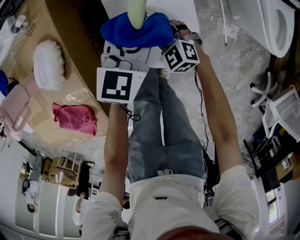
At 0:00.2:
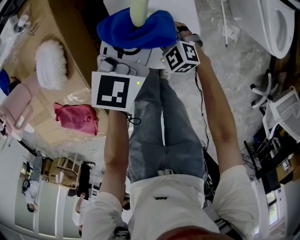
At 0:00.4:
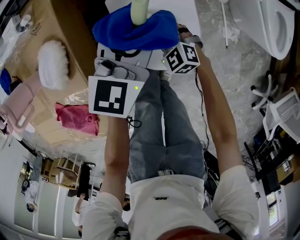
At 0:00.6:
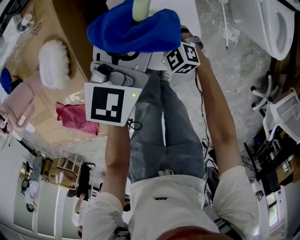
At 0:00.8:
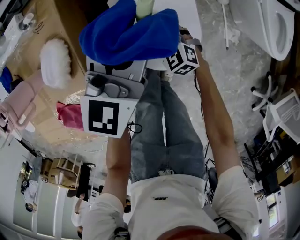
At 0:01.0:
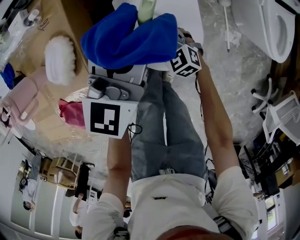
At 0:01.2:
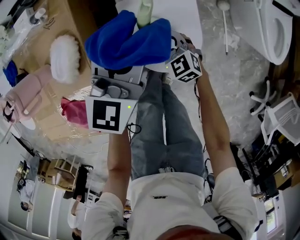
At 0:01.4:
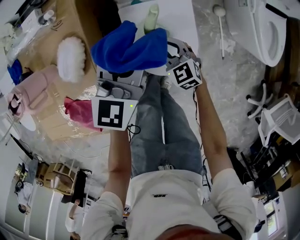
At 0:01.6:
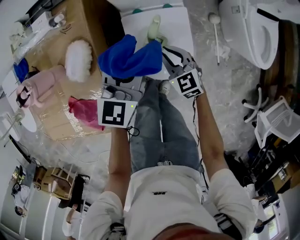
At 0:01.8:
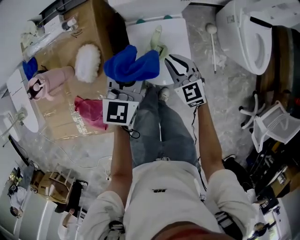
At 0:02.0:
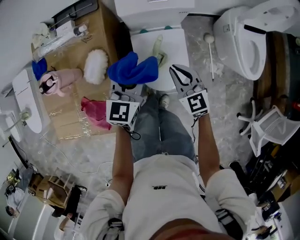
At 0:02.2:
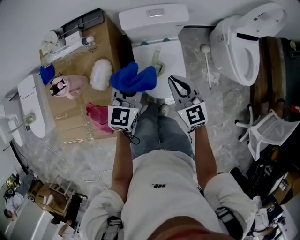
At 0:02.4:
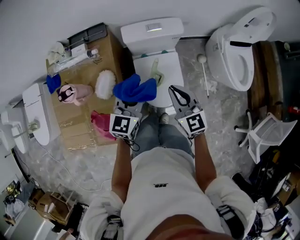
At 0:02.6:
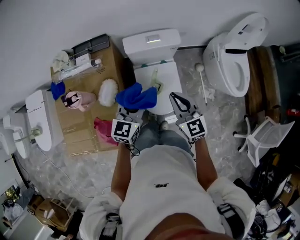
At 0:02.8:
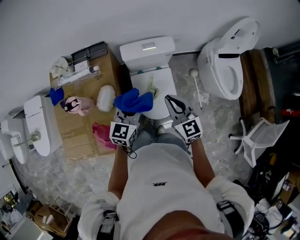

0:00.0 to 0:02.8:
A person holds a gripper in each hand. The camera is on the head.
0:00.0 to 0:01.4: The left gripper heads upward and to the left, covering some 15 cm; the right gripper moves upward, roughly 10 cm.
0:01.4 to 0:02.8: The right gripper travels upward by about 40 cm, and swivels about 20 degrees. Meanwhile the left gripper travels upward by roughly 20 cm.

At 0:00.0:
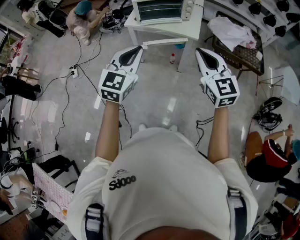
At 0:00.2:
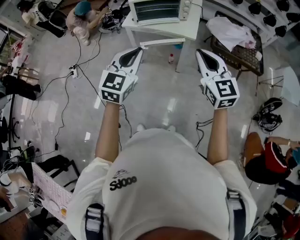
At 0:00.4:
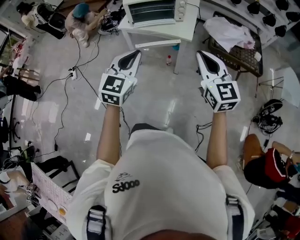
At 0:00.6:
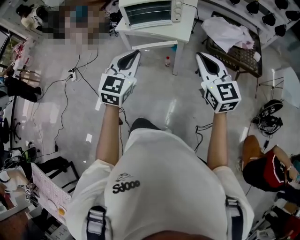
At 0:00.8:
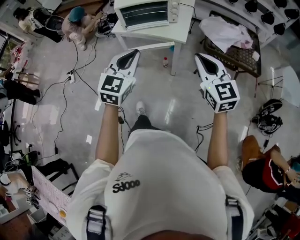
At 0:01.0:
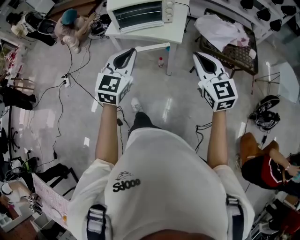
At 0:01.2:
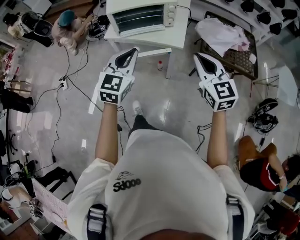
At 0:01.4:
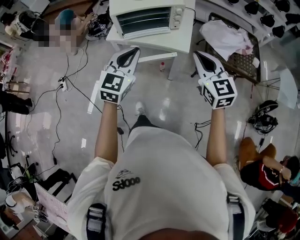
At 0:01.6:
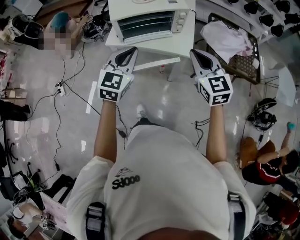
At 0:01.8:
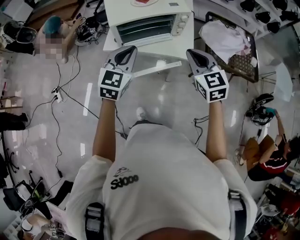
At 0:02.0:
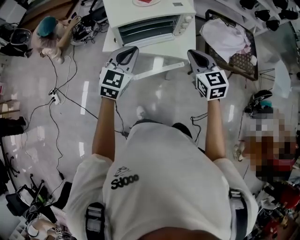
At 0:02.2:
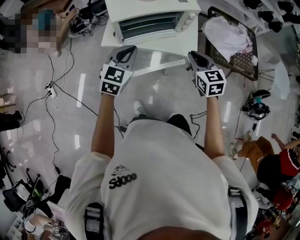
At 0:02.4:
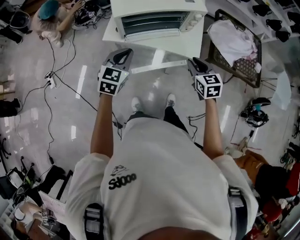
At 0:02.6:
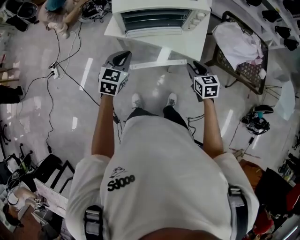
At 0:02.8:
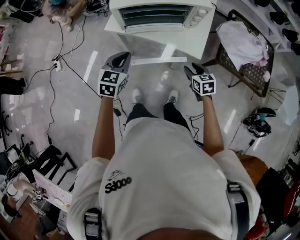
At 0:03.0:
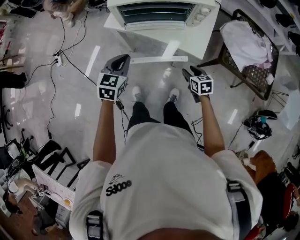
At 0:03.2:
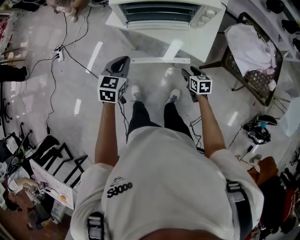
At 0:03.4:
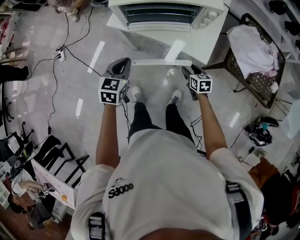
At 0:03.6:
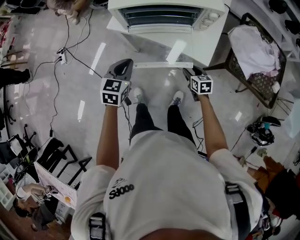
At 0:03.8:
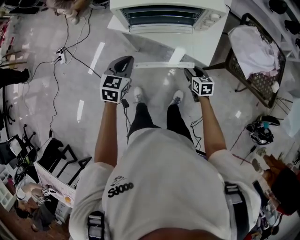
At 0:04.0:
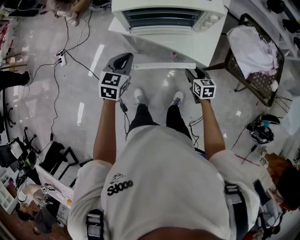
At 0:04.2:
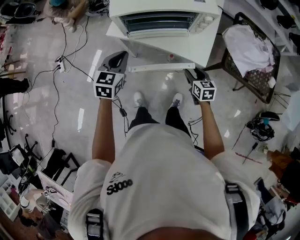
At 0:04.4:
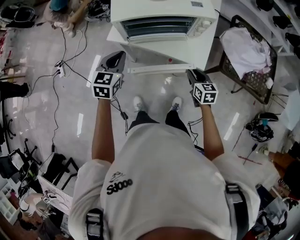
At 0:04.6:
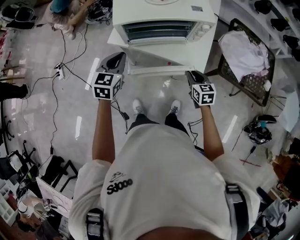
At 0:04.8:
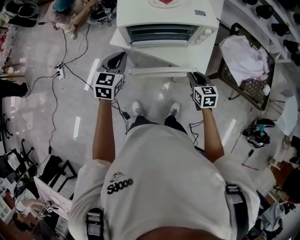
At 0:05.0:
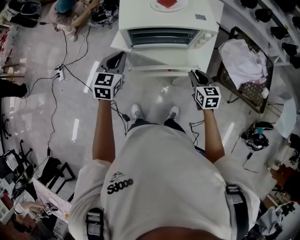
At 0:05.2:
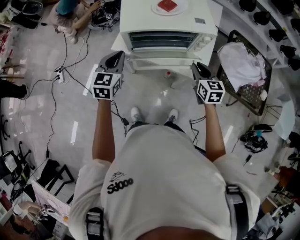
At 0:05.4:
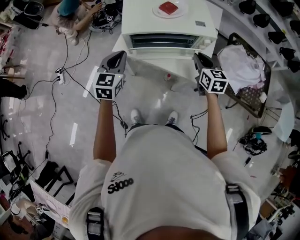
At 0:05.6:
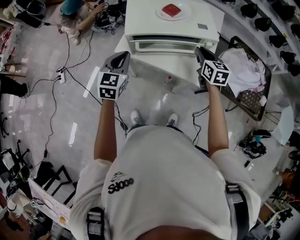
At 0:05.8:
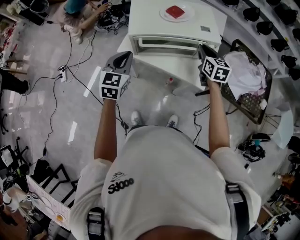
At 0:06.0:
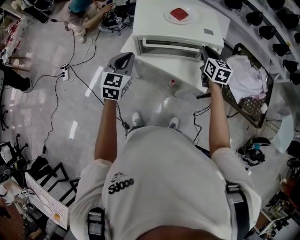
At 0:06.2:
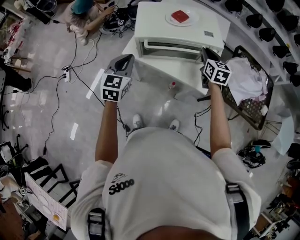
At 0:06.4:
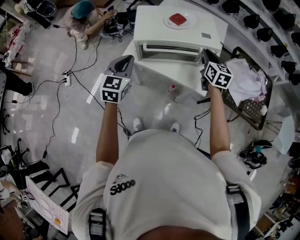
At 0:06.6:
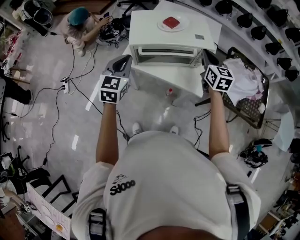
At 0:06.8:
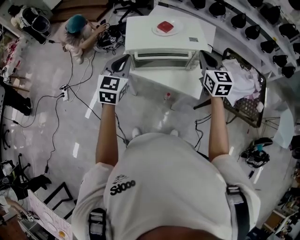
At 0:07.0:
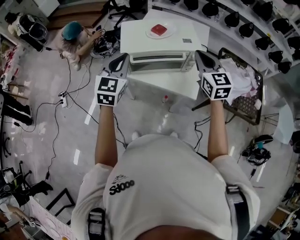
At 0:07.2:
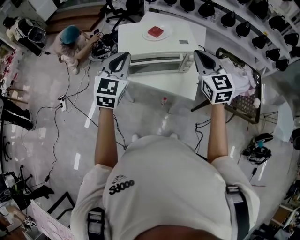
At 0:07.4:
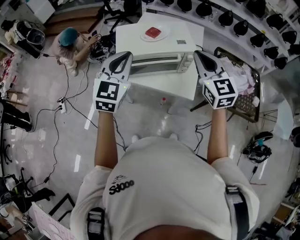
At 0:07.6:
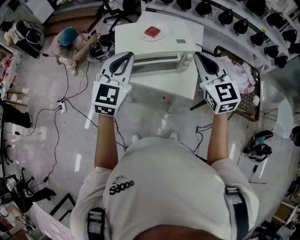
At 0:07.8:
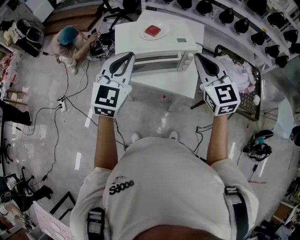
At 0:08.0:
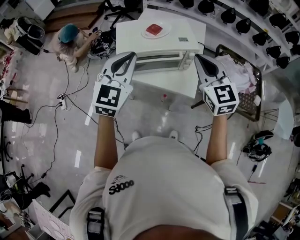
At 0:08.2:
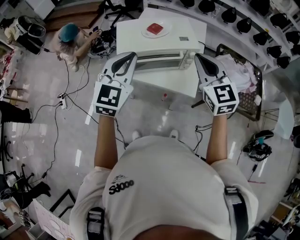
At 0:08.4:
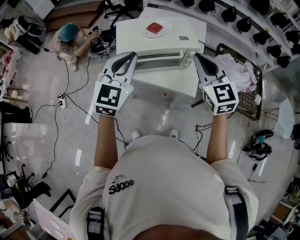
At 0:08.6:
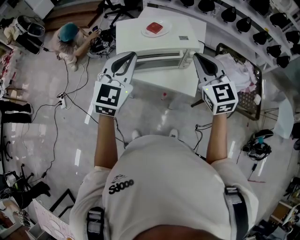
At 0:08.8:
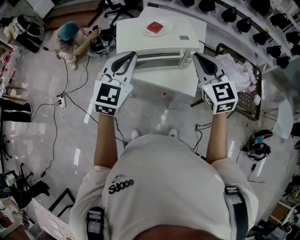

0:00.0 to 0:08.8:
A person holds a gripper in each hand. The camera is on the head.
0:00.0 to 0:01.4: Both grippers travel together forward, roughly 20 cm.
0:01.4 to 0:03.0: The right gripper travels downward and forward by roughly 40 cm, tilts its fingers about 40 degrees downward, and opens its fingers; the left gripper shifts some 25 cm downward, forward and to the left, and changes its angle by some 30 degrees.
0:03.0 to 0:04.4: The left gripper shifts about 10 cm forward, while the right gripper travels upward by approximately 5 cm.
0:04.4 to 0:05.8: The left gripper travels upward by about 5 cm; the right gripper goes roughly 25 cm forward and upward.
0:05.8 to 0:07.4: The right gripper goes about 25 cm upward and backward, and changes its angle by about 30 degrees. Meanwhile the left gripper goes approximately 20 cm upward and to the right, and changes its angle by approximately 20 degrees.
0:07.4 to 0:08.8: The grippers stay close to where they were, moving slightly.

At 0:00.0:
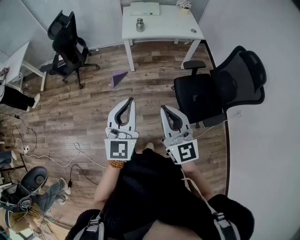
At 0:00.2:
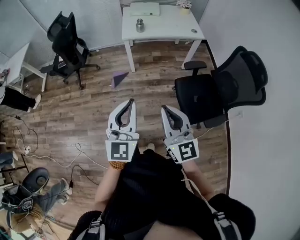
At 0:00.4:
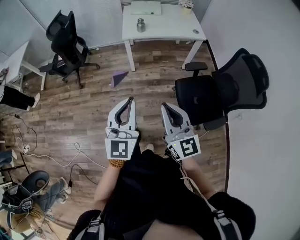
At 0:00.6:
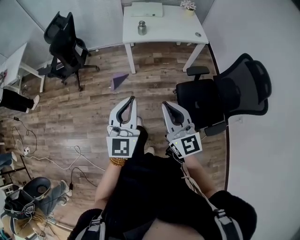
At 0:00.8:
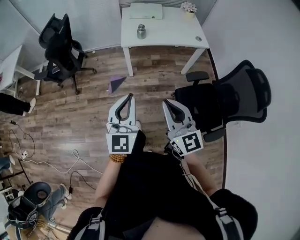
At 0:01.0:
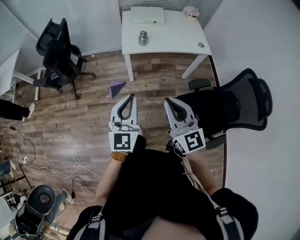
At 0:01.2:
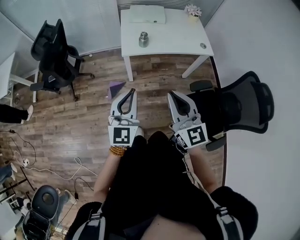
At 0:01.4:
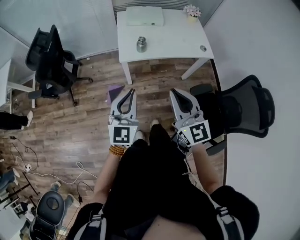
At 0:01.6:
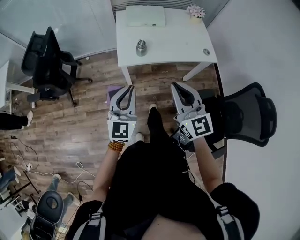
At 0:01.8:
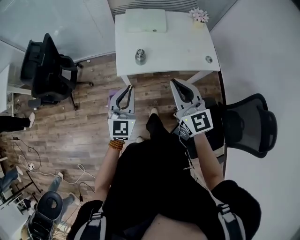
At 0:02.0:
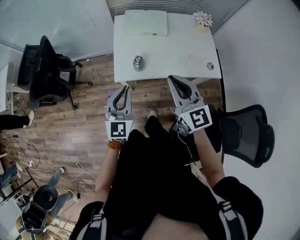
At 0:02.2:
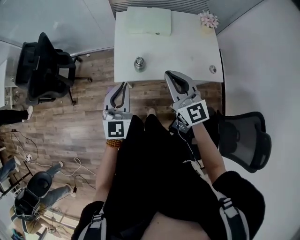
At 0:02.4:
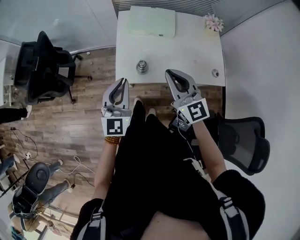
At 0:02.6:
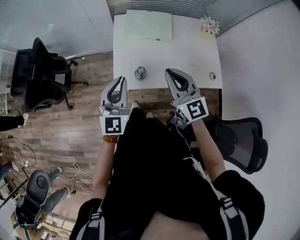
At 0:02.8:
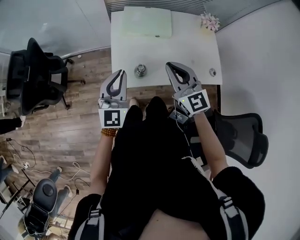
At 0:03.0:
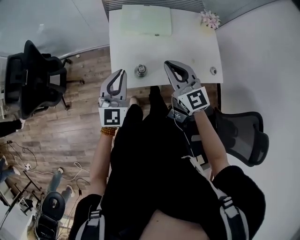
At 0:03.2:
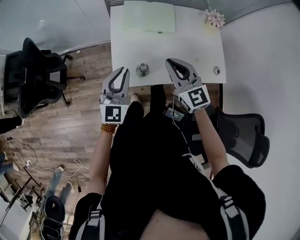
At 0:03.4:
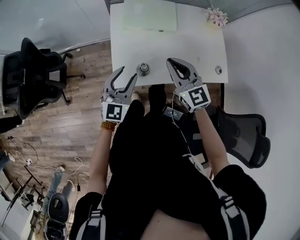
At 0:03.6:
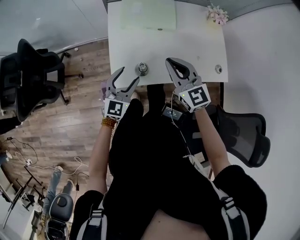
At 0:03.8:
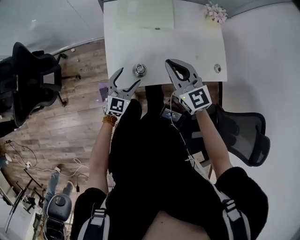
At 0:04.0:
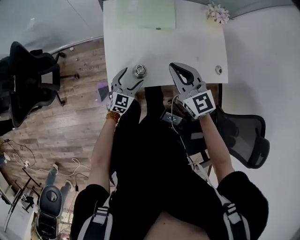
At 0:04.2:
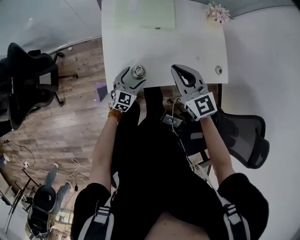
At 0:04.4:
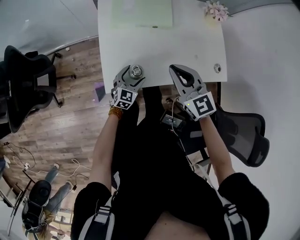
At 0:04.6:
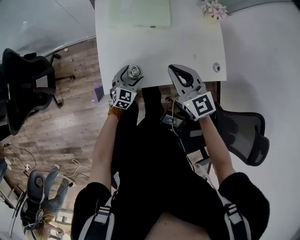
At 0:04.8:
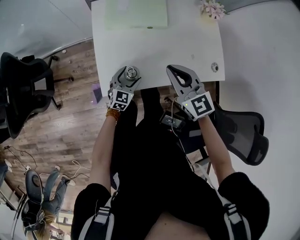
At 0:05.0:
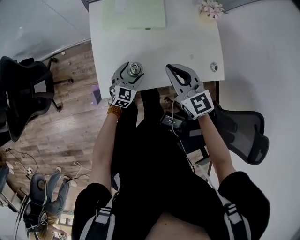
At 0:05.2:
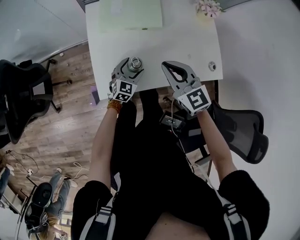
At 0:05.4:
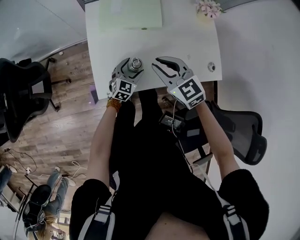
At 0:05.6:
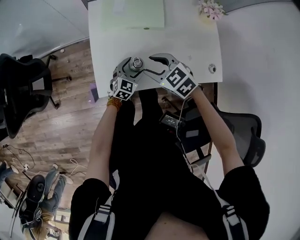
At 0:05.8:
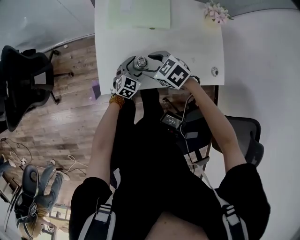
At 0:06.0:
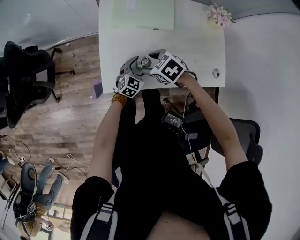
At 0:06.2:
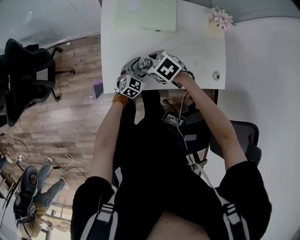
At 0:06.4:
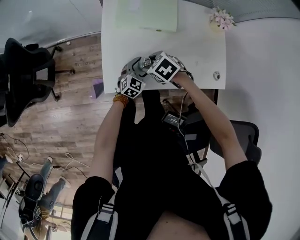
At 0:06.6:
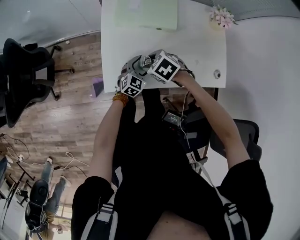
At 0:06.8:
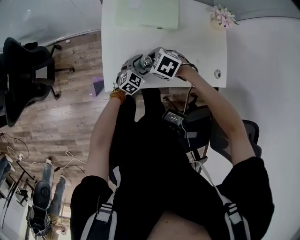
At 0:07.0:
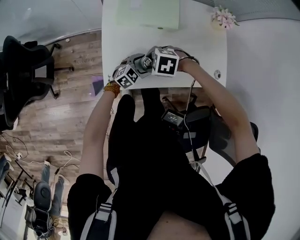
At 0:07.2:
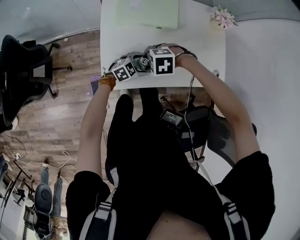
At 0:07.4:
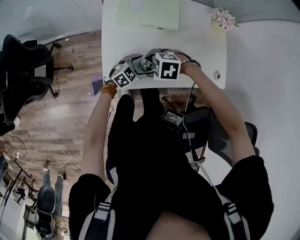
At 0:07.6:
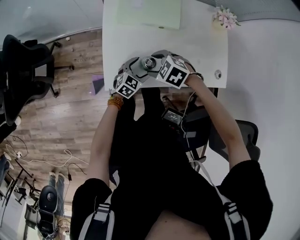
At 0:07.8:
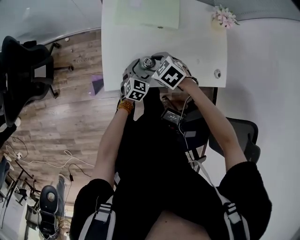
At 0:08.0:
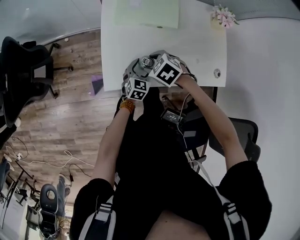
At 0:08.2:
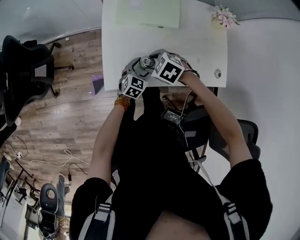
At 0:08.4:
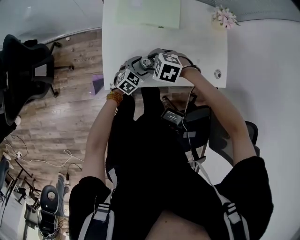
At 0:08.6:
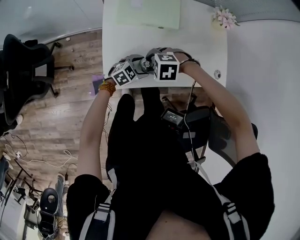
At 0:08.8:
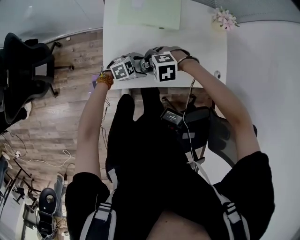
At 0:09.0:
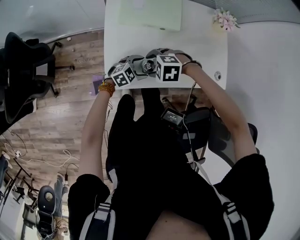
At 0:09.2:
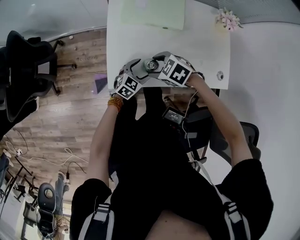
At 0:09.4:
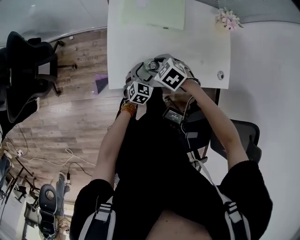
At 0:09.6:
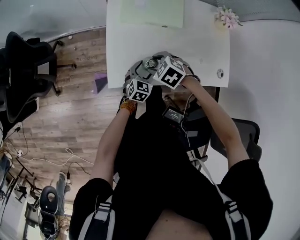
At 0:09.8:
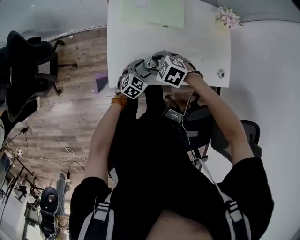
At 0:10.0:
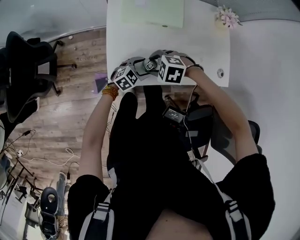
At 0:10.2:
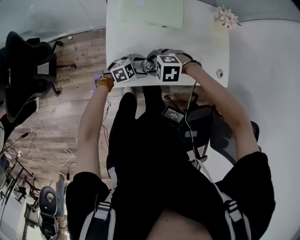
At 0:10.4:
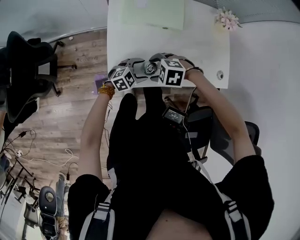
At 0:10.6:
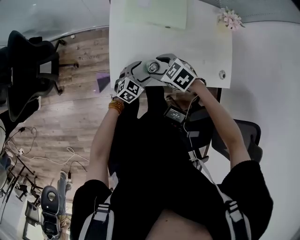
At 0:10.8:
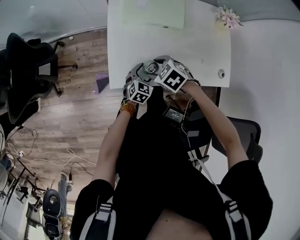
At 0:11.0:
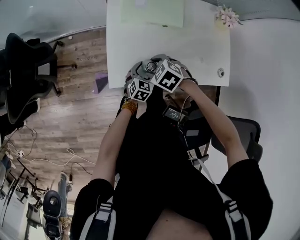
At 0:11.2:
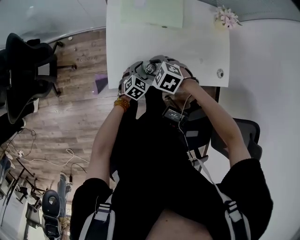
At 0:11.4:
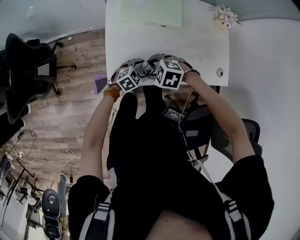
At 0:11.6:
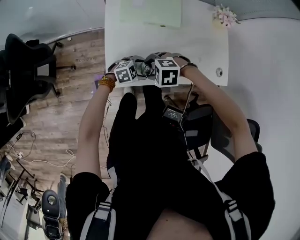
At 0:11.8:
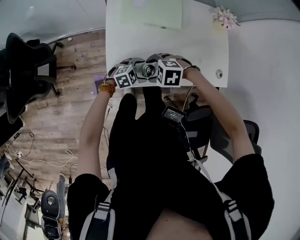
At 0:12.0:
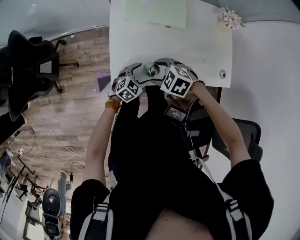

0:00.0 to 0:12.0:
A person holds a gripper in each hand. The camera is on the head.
0:00.0 to 0:01.6: The two grippers travel together, forward, some 50 cm.
0:01.6 to 0:03.0: Both grippers move forward, approximately 30 cm.
0:03.0 to 0:04.4: The right gripper moves downward, approximately 10 cm. Meanwhile the left gripper travels downward by approximately 30 cm, turns by about 30 degrees, and opens its fingers.
0:04.4 to 0:06.0: The left gripper goes some 5 cm to the right and forward, while the right gripper moves downward, about 15 cm, points its fingers approximately 40 degrees further downward, and opens up.
0:07.6 to 0:09.0: The right gripper rotates roughly 20 degrees. The left gripper swivels approximately 30 degrees.
